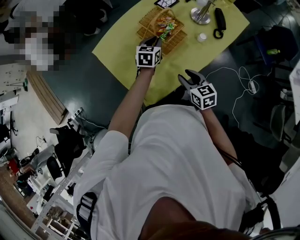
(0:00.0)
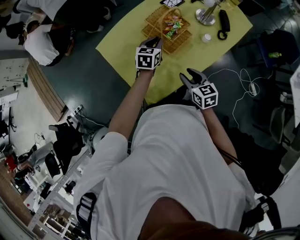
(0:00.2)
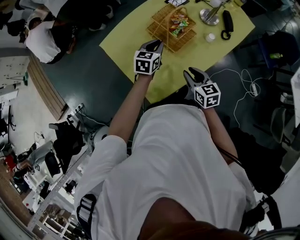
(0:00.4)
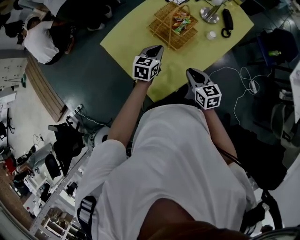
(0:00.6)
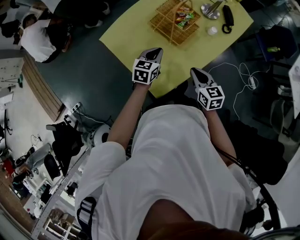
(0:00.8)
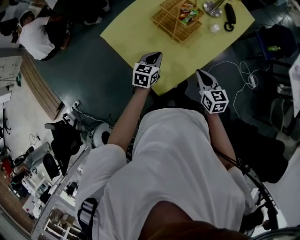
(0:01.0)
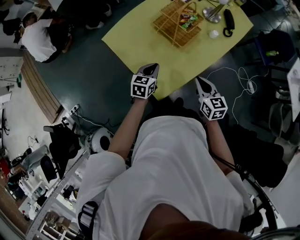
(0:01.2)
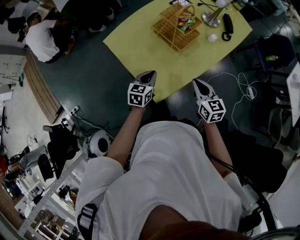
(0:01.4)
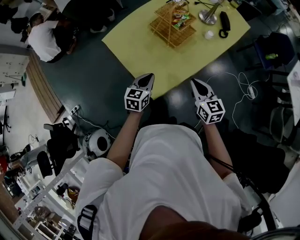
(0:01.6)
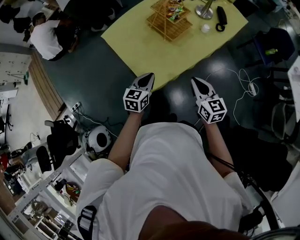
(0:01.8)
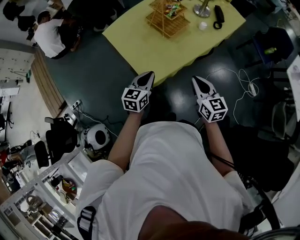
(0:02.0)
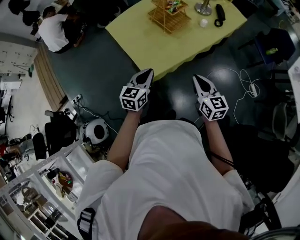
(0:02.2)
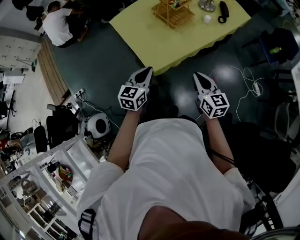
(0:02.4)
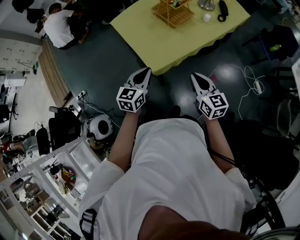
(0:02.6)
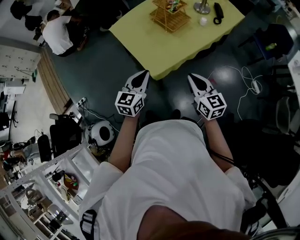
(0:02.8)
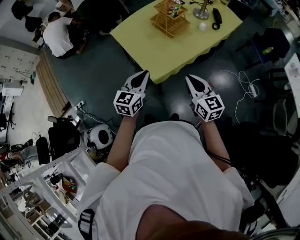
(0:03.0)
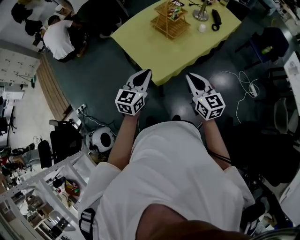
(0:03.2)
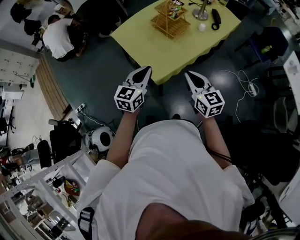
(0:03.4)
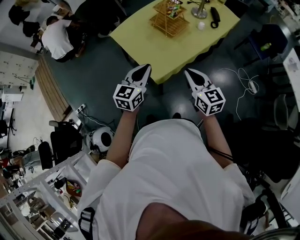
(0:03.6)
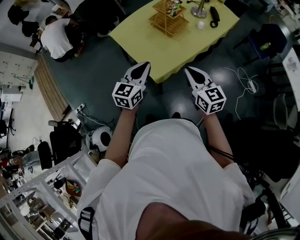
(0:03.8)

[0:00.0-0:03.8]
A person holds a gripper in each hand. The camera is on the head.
0:00.0 to 0:01.2: The right gripper moves backward and to the left, approximately 10 cm, and closes its fingers. Meanwhile the left gripper shifts approximately 25 cm backward and to the left.
0:01.2 to 0:02.6: The right gripper shifts roughly 20 cm backward, while the left gripper is displaced backward and upward by some 30 cm.
0:02.6 to 0:03.8: The left gripper shifts roughly 10 cm upward, while the right gripper heads upward and to the left, covering some 10 cm.

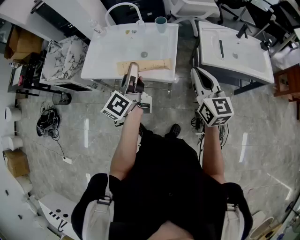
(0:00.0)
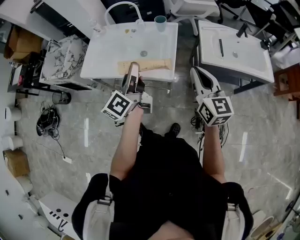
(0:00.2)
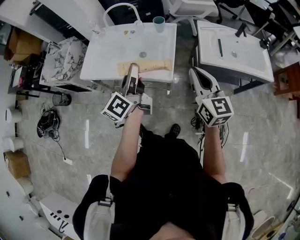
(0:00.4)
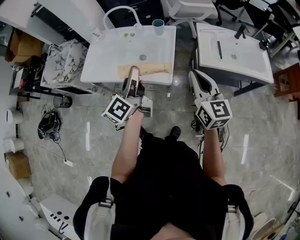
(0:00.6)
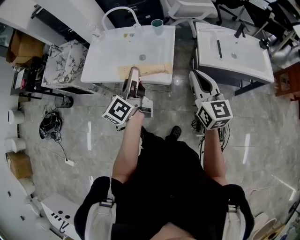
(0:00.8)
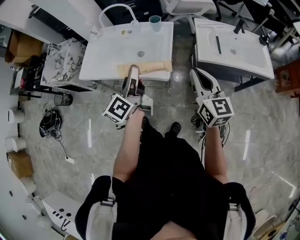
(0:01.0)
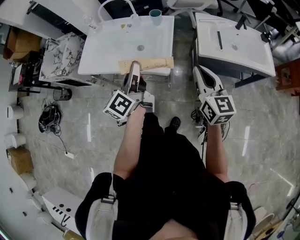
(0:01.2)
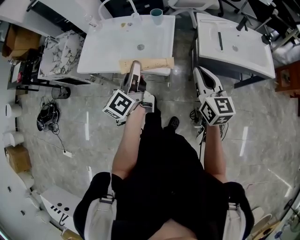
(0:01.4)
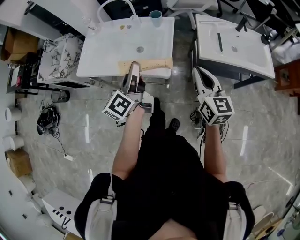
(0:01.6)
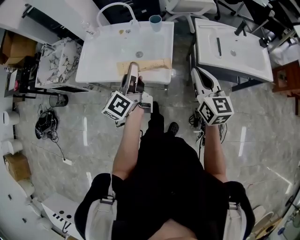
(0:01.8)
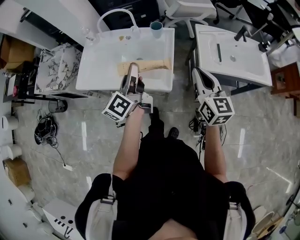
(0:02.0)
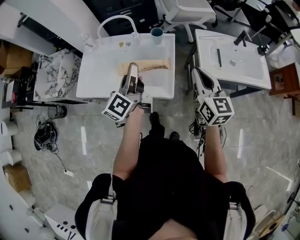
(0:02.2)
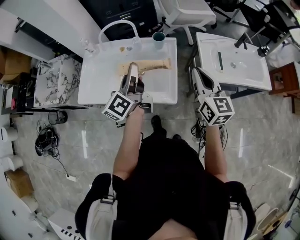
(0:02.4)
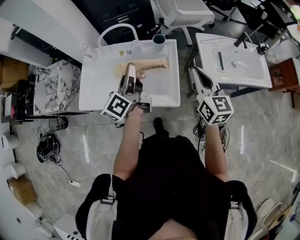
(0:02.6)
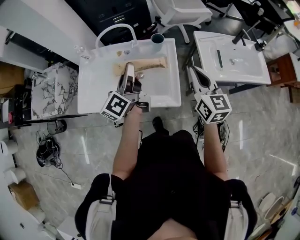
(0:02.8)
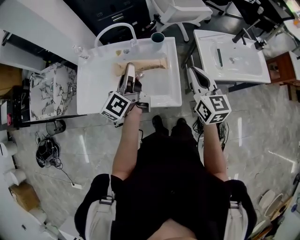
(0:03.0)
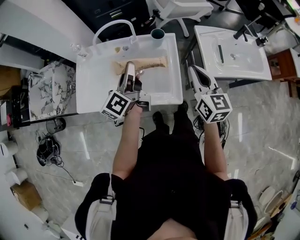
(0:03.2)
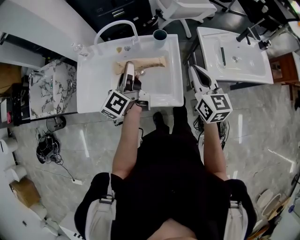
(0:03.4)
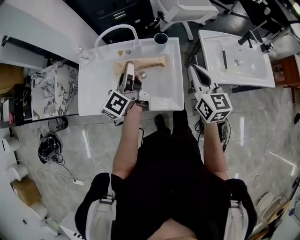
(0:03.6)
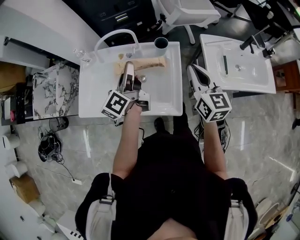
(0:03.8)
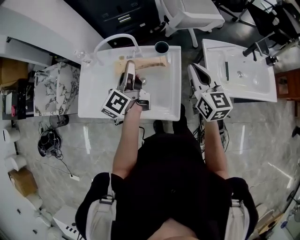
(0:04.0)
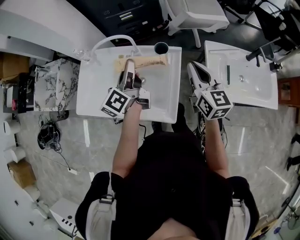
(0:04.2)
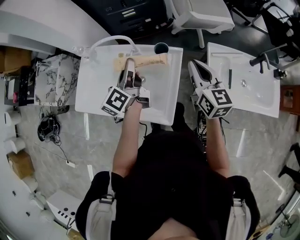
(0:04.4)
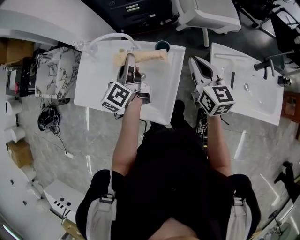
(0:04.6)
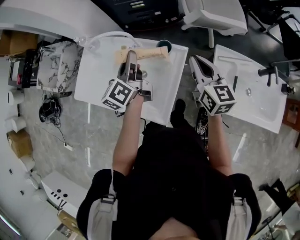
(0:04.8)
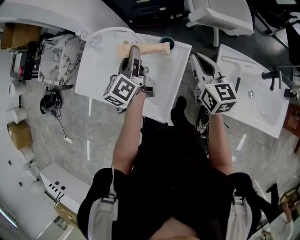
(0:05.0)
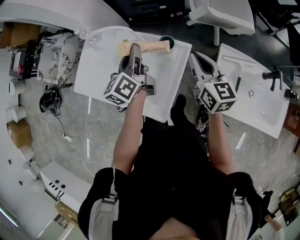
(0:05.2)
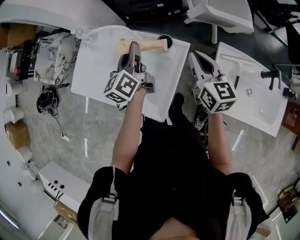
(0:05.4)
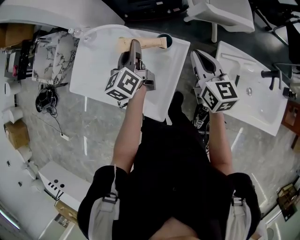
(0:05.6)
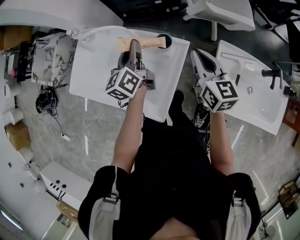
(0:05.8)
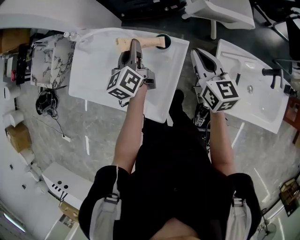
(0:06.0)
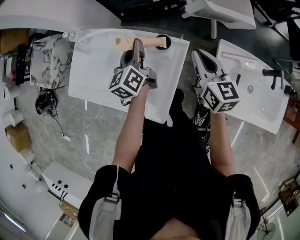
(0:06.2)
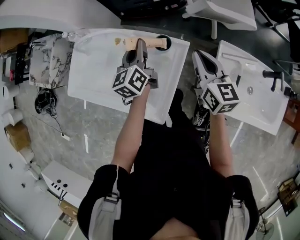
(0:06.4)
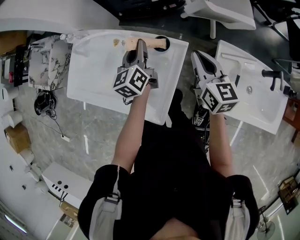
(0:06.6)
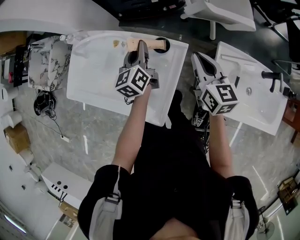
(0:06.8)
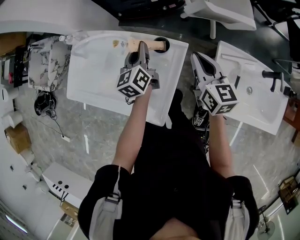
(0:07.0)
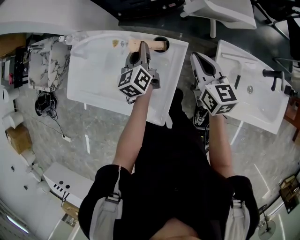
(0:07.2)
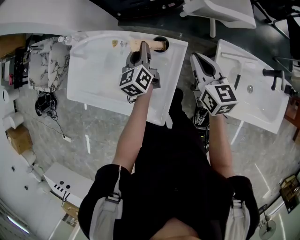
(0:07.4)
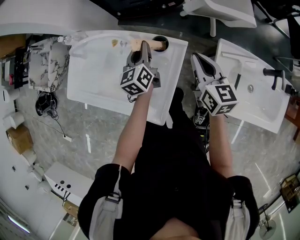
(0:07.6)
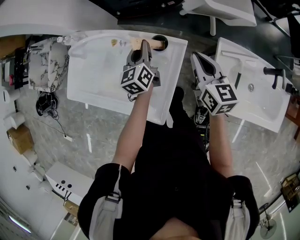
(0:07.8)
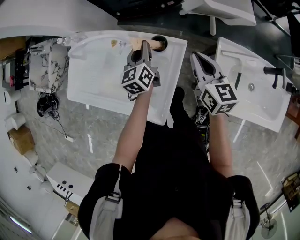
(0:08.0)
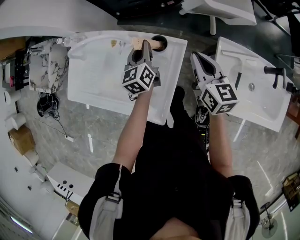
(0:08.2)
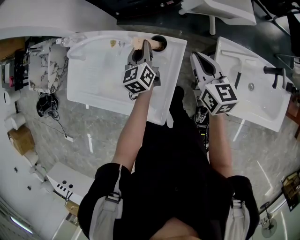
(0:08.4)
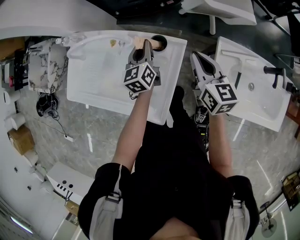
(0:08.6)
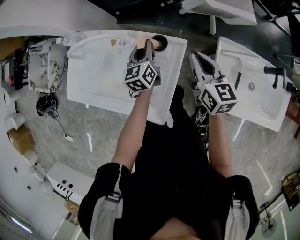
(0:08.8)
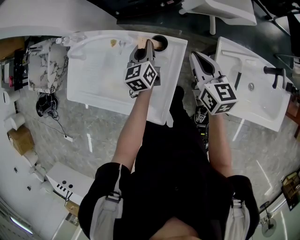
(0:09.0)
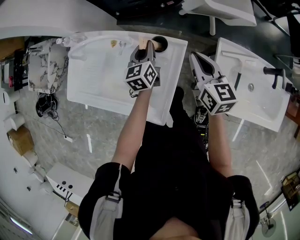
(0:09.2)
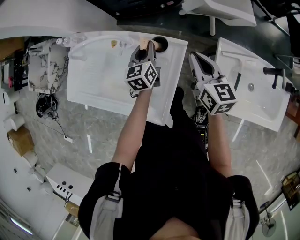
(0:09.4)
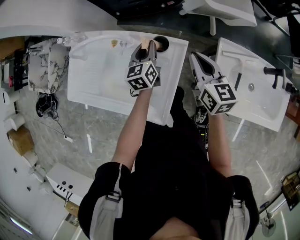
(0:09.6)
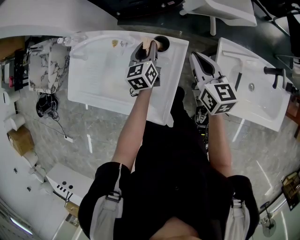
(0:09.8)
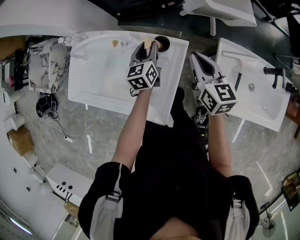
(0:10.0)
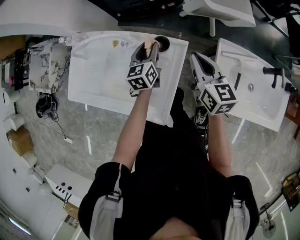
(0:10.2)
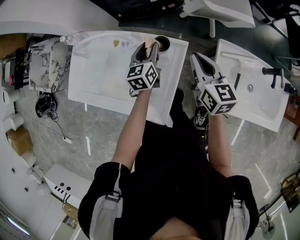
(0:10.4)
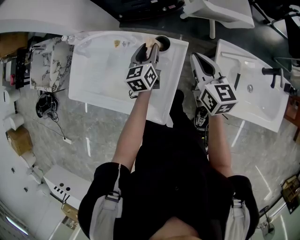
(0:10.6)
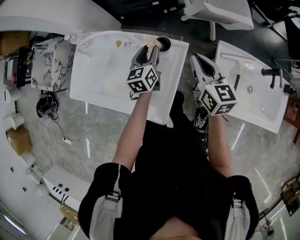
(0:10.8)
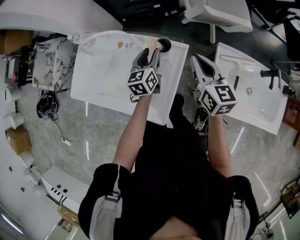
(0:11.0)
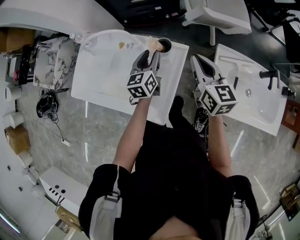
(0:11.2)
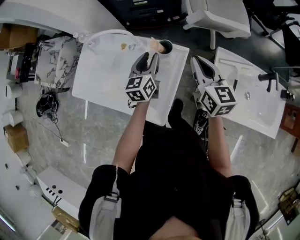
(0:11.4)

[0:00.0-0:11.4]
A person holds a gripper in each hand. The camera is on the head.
0:00.0 to 0:01.4: The grippers move only a little.
0:01.4 to 0:02.8: The left gripper goes some 20 cm forward. The right gripper moves forward and to the left, about 20 cm.
0:02.8 to 0:04.2: The two grippers go approximately 10 cm forward.
0:04.2 to 0:05.6: The left gripper goes about 5 cm forward, and turns by roughly 20 degrees. The right gripper heads forward and downward, covering roughly 10 cm.
0:05.6 to 0:07.2: The left gripper shifts some 10 cm downward.
0:07.2 to 0:08.6: There are only small adjustments of the grippers.
0:08.6 to 0:10.0: The left gripper opens.
0:10.0 to 0:11.4: The left gripper travels upward and backward by approximately 10 cm. The right gripper is displaced upward by approximately 5 cm.

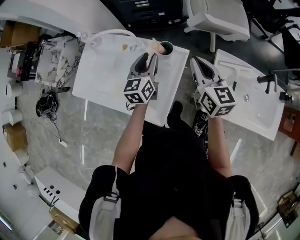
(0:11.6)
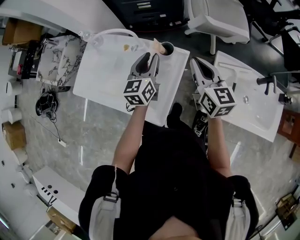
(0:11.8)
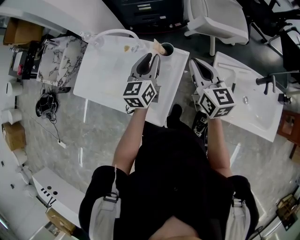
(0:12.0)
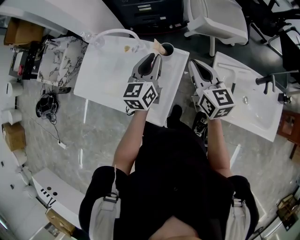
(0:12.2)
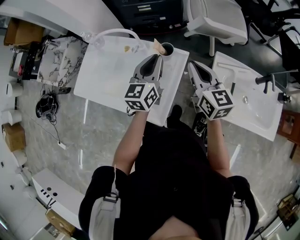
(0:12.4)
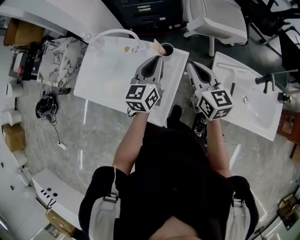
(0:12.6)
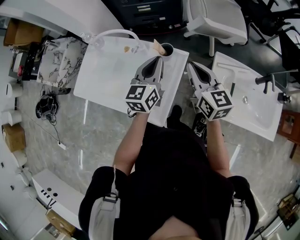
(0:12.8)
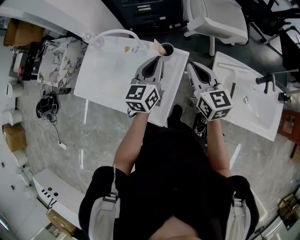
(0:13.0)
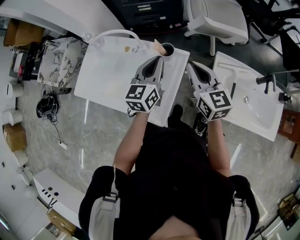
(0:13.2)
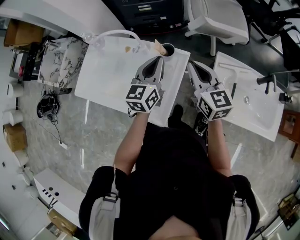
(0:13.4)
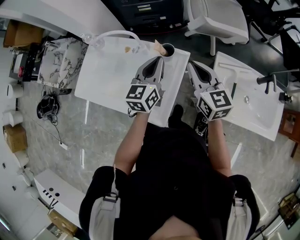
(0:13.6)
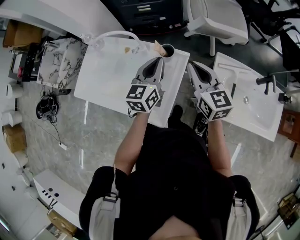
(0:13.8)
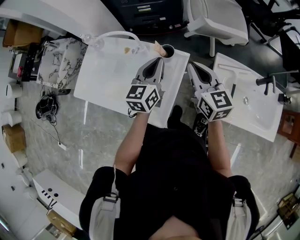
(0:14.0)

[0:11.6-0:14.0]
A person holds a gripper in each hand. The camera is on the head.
0:11.6 to 0:12.8: The left gripper travels upward by approximately 5 cm, and closes its fingers.
0:12.8 to 0:14.0: The grippers stay close to where they were, moving slightly.

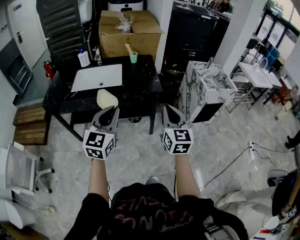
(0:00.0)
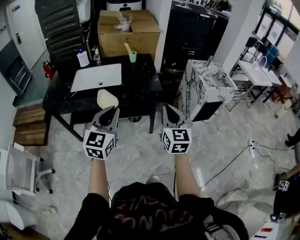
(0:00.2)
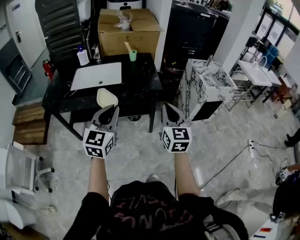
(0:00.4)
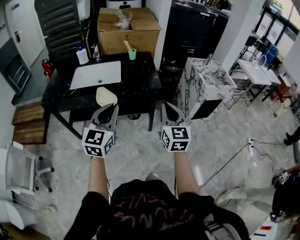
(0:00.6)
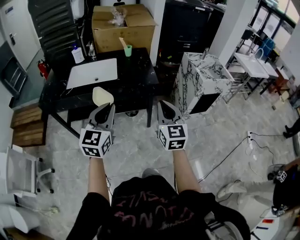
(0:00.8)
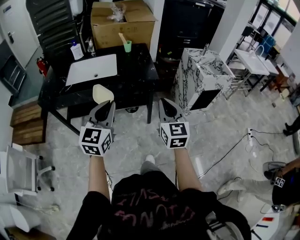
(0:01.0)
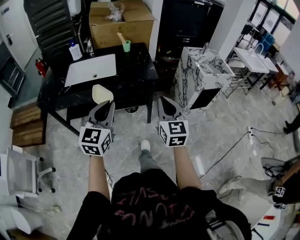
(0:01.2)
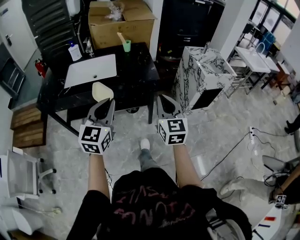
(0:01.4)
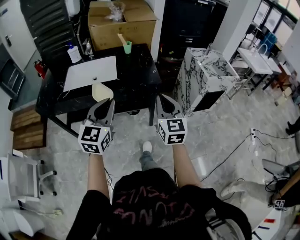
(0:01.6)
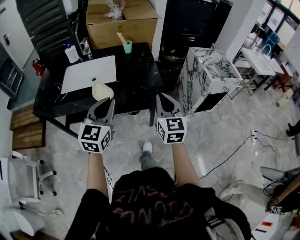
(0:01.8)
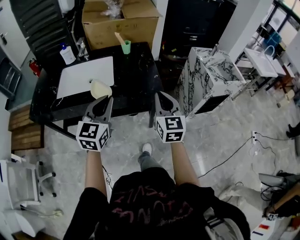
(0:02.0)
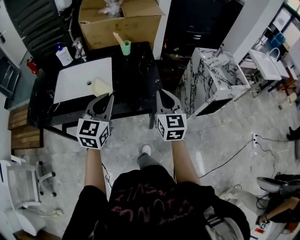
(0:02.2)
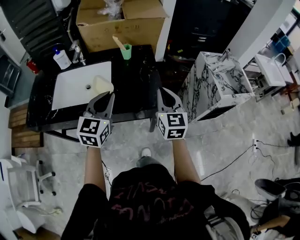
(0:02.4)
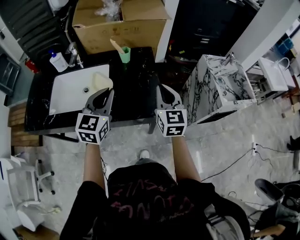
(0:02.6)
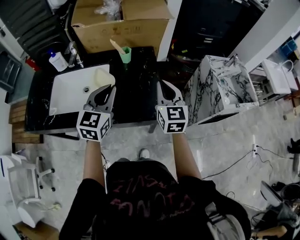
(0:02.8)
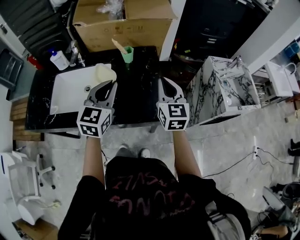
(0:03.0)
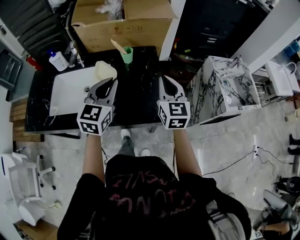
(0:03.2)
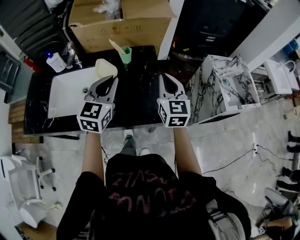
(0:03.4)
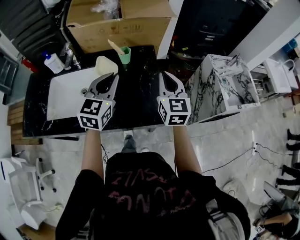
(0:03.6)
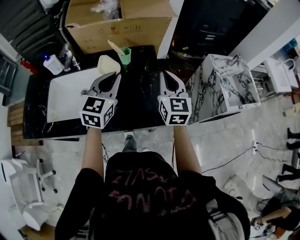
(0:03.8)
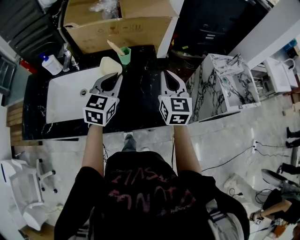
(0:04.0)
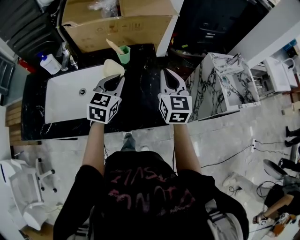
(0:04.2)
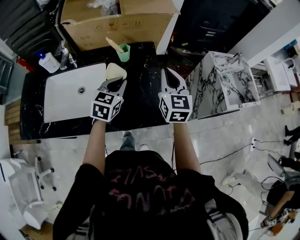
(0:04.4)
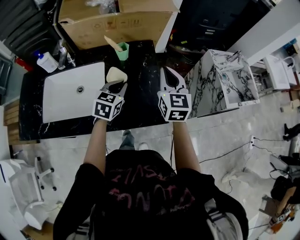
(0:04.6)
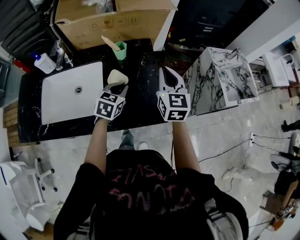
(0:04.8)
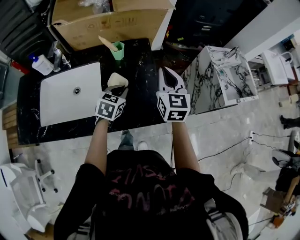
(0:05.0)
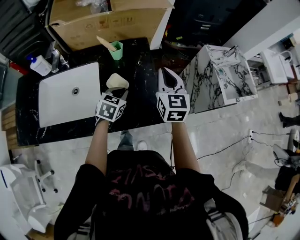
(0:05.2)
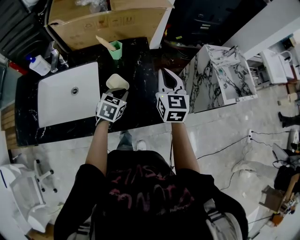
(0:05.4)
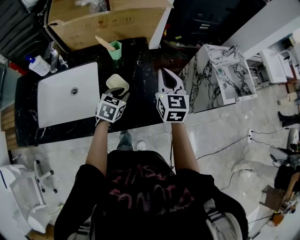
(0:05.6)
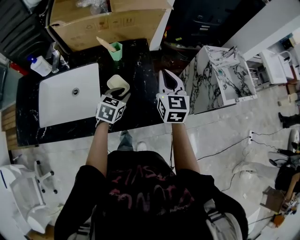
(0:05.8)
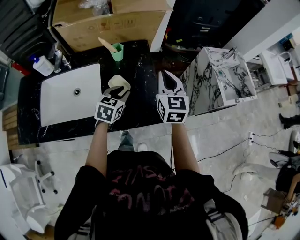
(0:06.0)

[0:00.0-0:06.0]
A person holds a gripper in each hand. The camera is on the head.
0:00.0 to 0:01.6: Both grippers move forward, some 5 cm.
0:01.6 to 0:03.0: Both grippers move forward, about 40 cm.
0:03.0 to 0:04.4: The left gripper travels downward and forward by some 15 cm. Meanwhile the right gripper moves forward, some 5 cm.
0:04.4 to 0:06.0: The left gripper moves downward, about 5 cm, and opens.
